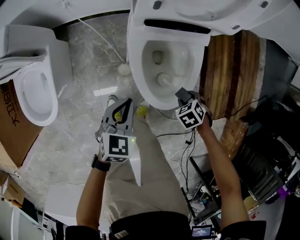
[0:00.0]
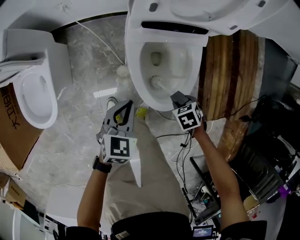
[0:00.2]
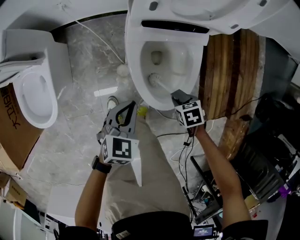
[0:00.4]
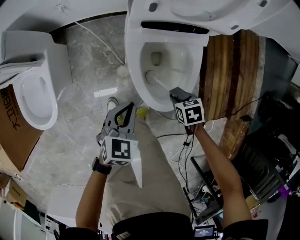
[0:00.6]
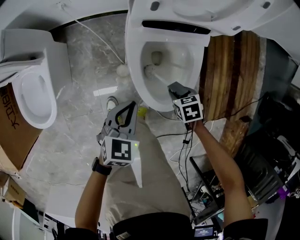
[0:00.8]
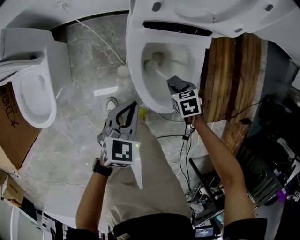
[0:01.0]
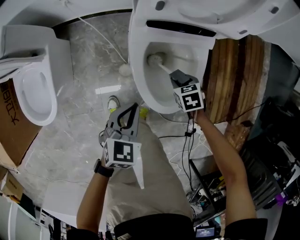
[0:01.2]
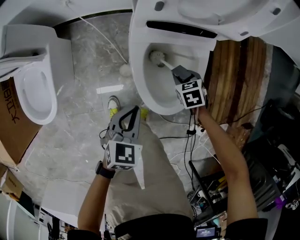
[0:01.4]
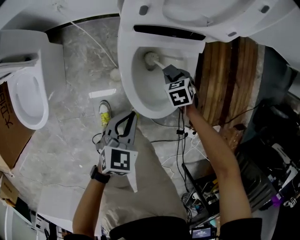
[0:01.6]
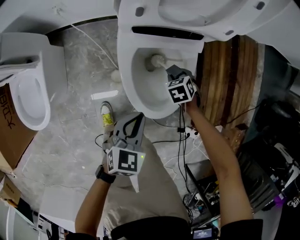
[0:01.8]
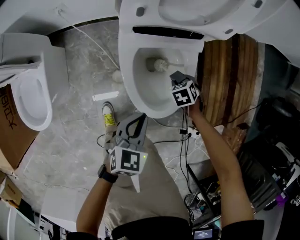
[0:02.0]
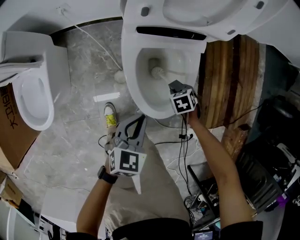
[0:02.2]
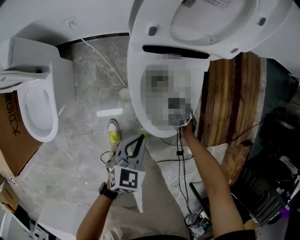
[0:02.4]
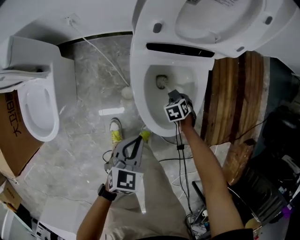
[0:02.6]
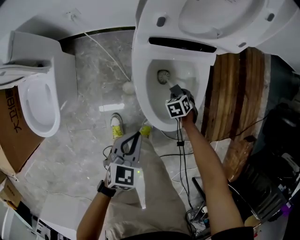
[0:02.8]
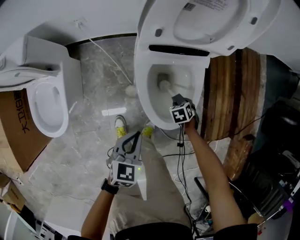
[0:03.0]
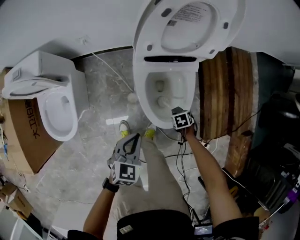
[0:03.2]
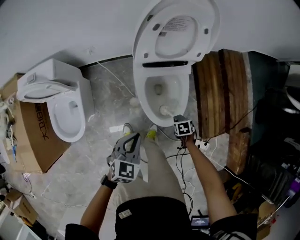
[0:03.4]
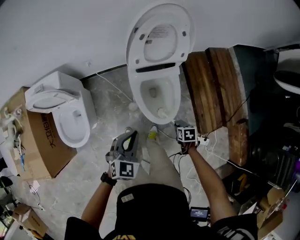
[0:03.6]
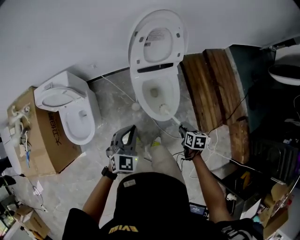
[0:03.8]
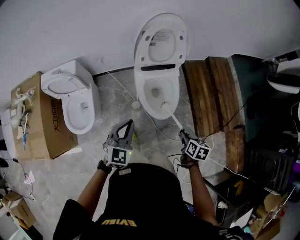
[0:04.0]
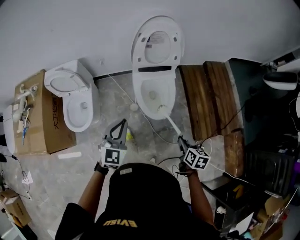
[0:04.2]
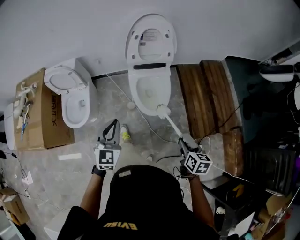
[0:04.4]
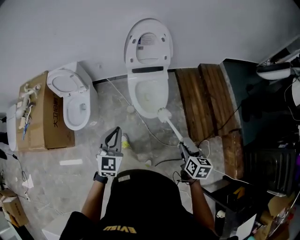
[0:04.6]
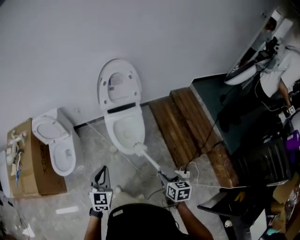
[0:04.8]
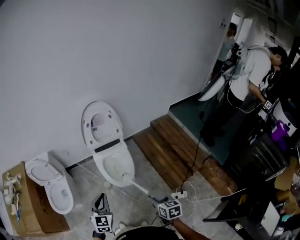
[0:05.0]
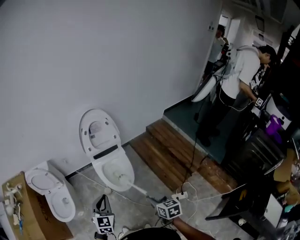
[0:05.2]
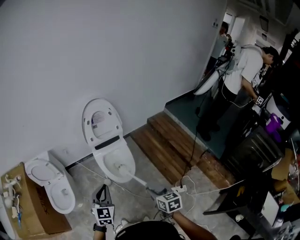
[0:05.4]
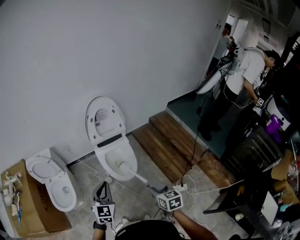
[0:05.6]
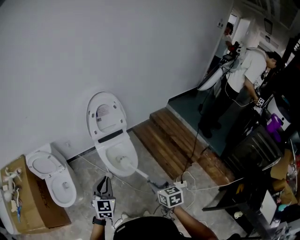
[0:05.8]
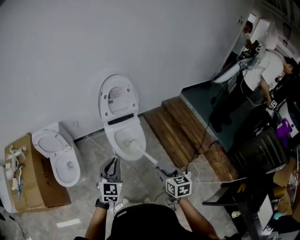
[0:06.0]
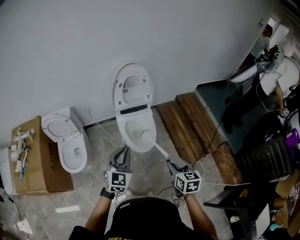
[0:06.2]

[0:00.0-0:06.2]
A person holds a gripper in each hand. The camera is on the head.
0.0 to 1.6 s: The right gripper changes place by some 15 cm, while the left gripper changes place by about 5 cm.
1.6 to 3.2 s: The left gripper travels upward by roughly 10 cm, while the right gripper reaches approximately 10 cm downward, then returns, and rotates approximately 20 degrees.
3.2 to 4.6 s: Both grippers move upward, roughly 40 cm. The right gripper points its fingers some 40 degrees further upward, while the left gripper rotates approximately 30 degrees.
4.6 to 6.2 s: The right gripper is displaced upward and to the left by roughly 15 cm; the left gripper moves upward, some 10 cm.

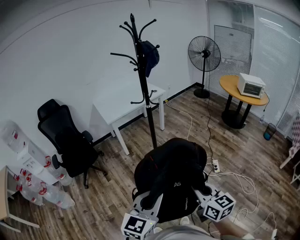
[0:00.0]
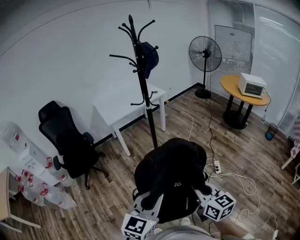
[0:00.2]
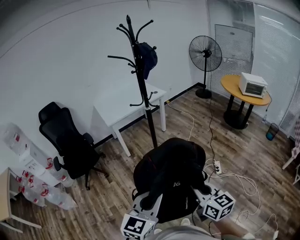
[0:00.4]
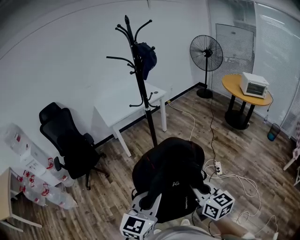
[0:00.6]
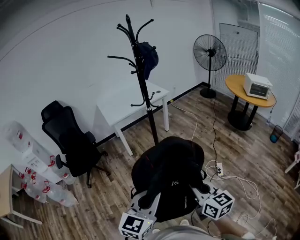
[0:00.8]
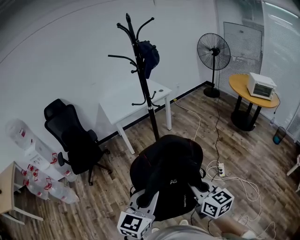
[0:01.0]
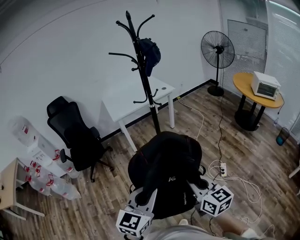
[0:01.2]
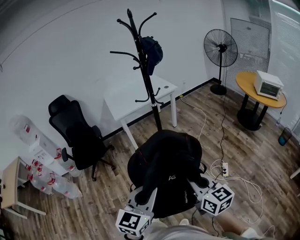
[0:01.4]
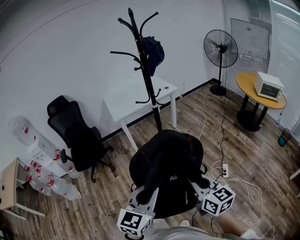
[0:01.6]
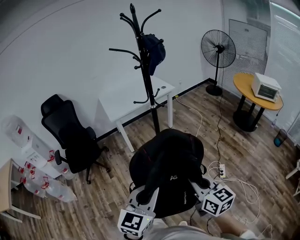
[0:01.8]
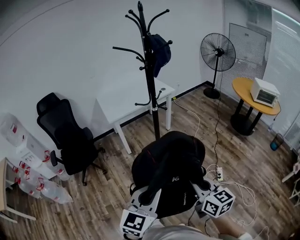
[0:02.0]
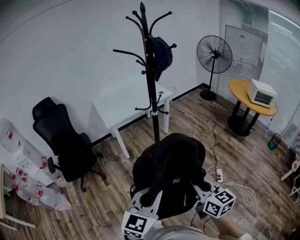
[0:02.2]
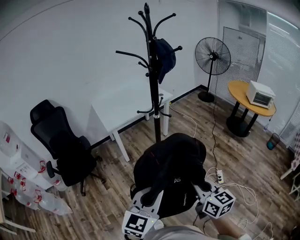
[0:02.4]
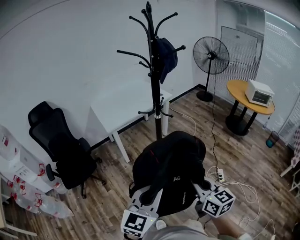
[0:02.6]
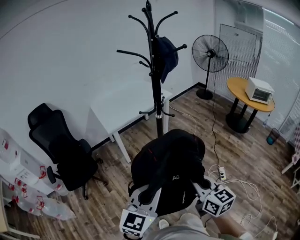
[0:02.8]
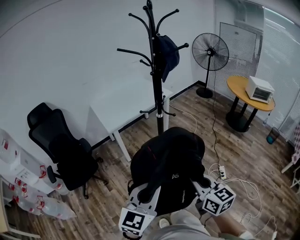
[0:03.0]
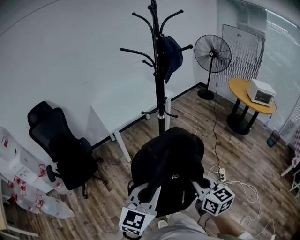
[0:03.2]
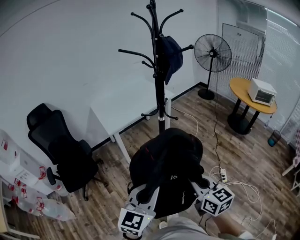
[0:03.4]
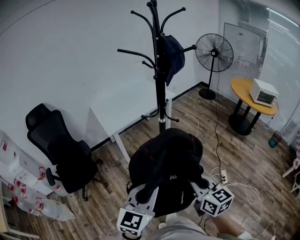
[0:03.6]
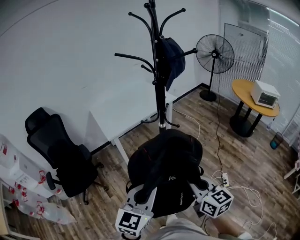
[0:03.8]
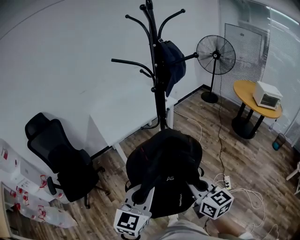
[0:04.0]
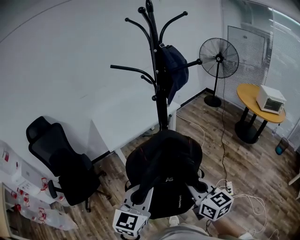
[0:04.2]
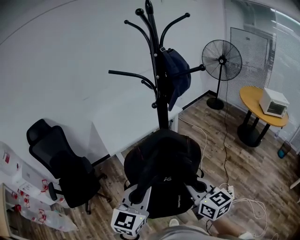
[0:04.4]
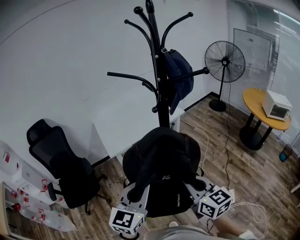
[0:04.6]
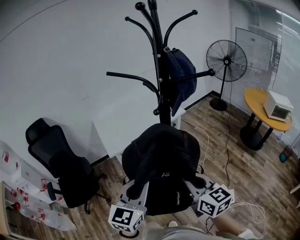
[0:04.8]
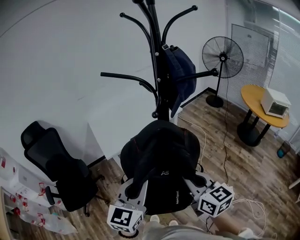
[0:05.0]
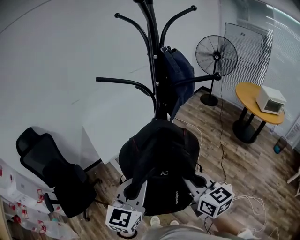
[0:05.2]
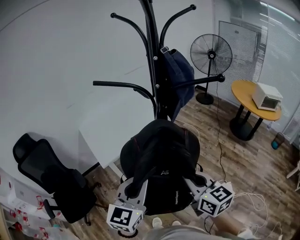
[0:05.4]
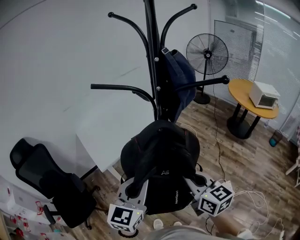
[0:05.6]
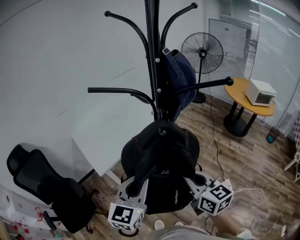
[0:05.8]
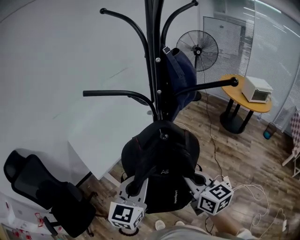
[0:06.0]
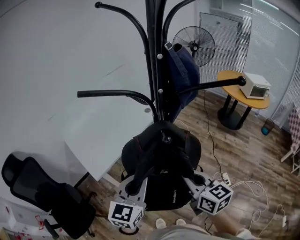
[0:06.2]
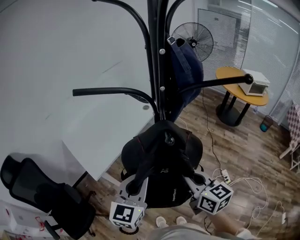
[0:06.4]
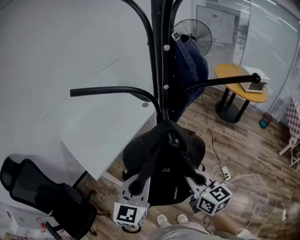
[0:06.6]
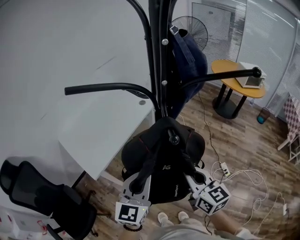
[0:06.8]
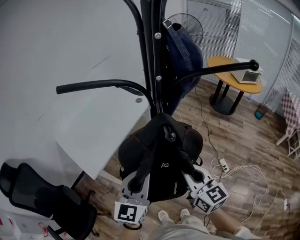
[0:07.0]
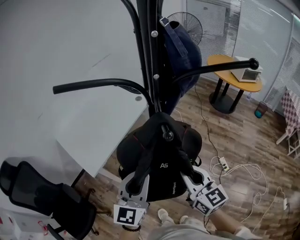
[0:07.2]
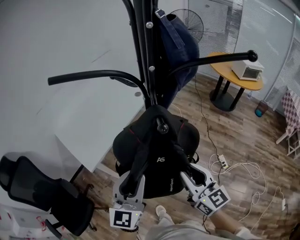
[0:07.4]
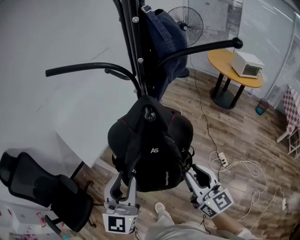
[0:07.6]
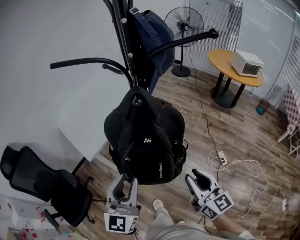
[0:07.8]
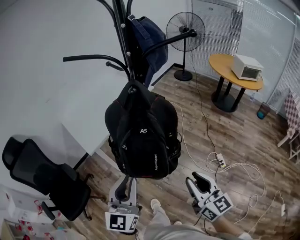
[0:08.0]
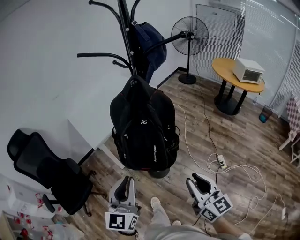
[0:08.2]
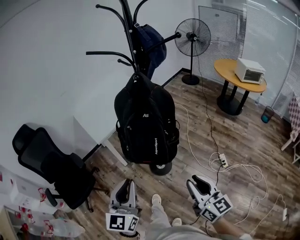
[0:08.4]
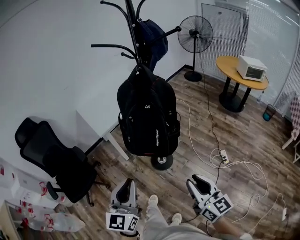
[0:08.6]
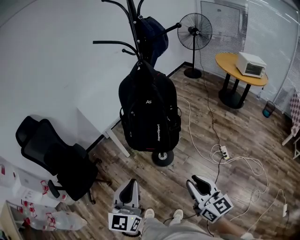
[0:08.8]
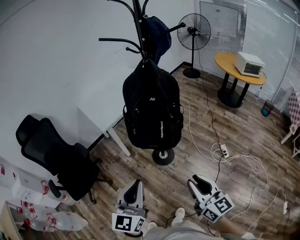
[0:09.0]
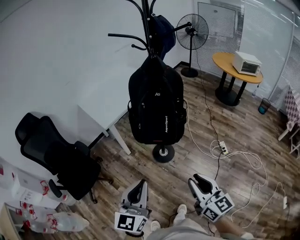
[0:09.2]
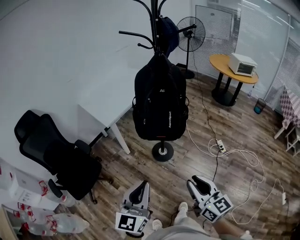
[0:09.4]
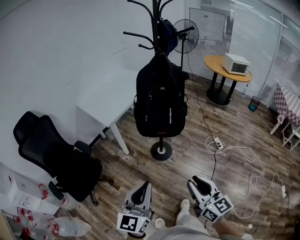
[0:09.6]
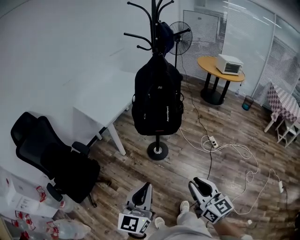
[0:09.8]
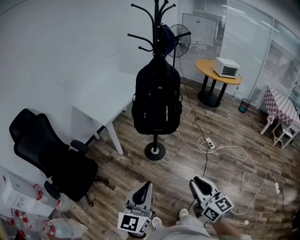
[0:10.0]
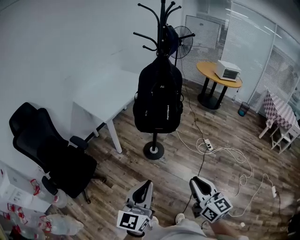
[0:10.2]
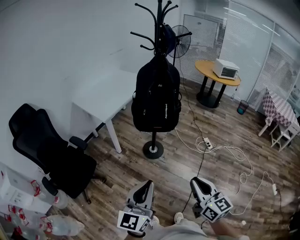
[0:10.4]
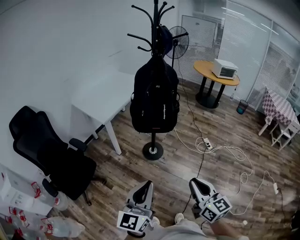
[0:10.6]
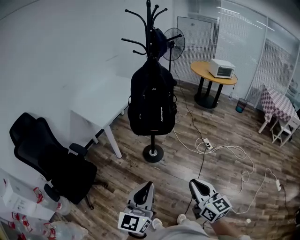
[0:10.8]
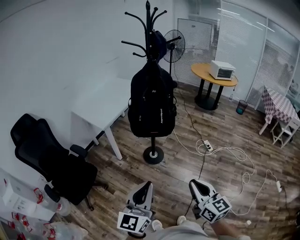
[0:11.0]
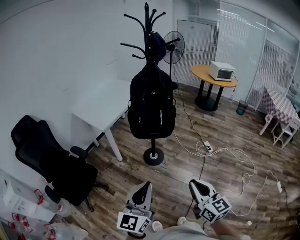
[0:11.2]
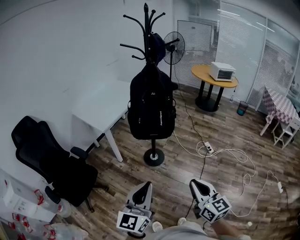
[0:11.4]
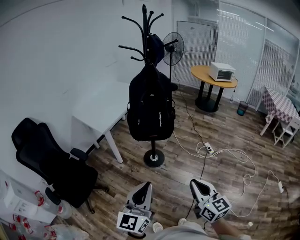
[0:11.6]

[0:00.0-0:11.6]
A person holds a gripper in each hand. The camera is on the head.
0.0 to 1.4 s: The two grippers go approximately 10 cm forward and to the right.
1.4 to 2.8 s: The right gripper heads to the left and forward, covering roughly 20 cm, while the left gripper is displaced forward and to the left by about 20 cm.
2.8 to 4.4 s: The grippers both shift forward by approximately 25 cm.
4.4 to 5.8 s: The grippers both shift forward by some 15 cm.
5.8 to 7.2 s: The left gripper moves downward, some 5 cm, while the right gripper moves about 5 cm.
7.2 to 8.8 s: Both grippers move backward, approximately 35 cm.
8.8 to 10.2 s: Both grippers travel together backward and to the left, some 25 cm. The left gripper rotates approximately 20 degrees.
10.2 to 11.6 s: The grippers move only a little.

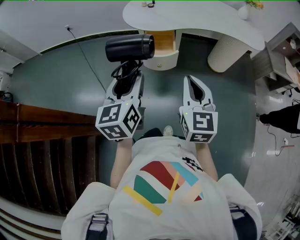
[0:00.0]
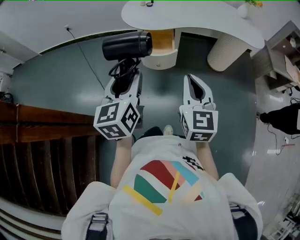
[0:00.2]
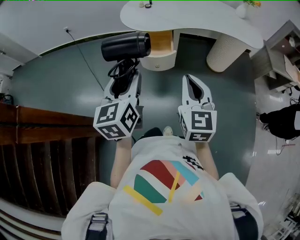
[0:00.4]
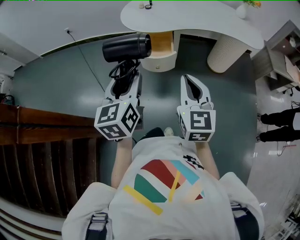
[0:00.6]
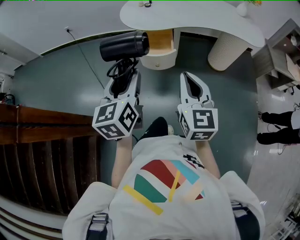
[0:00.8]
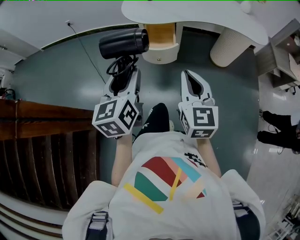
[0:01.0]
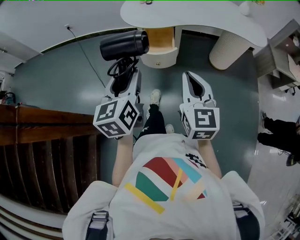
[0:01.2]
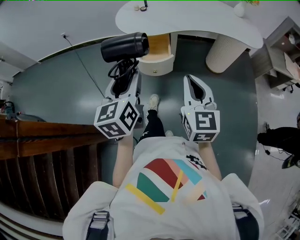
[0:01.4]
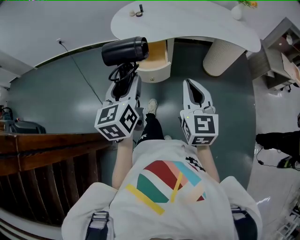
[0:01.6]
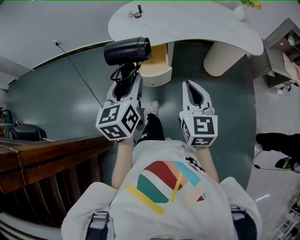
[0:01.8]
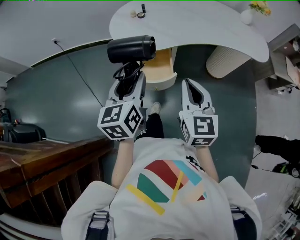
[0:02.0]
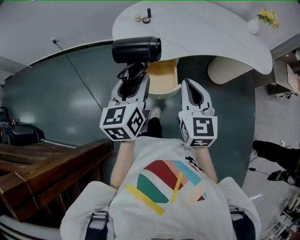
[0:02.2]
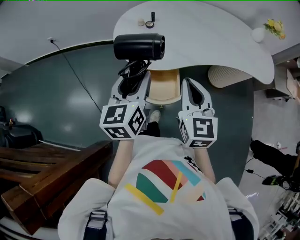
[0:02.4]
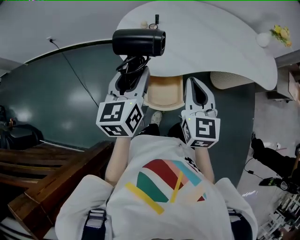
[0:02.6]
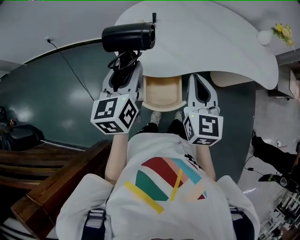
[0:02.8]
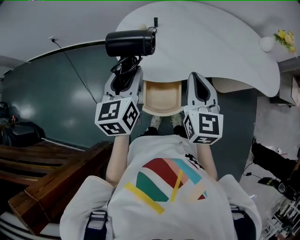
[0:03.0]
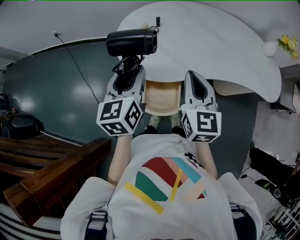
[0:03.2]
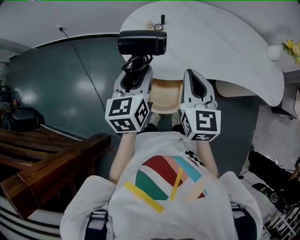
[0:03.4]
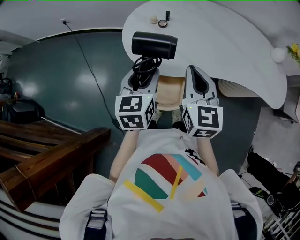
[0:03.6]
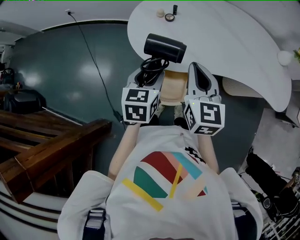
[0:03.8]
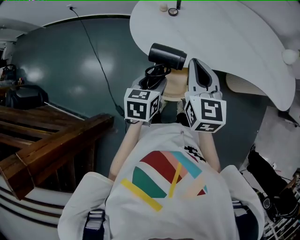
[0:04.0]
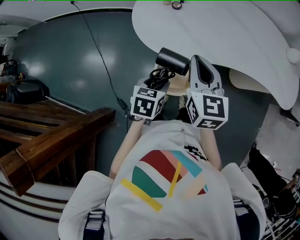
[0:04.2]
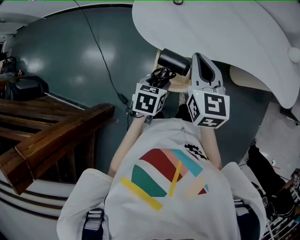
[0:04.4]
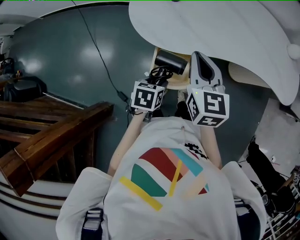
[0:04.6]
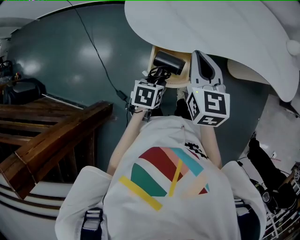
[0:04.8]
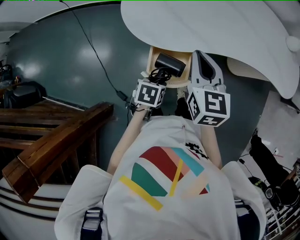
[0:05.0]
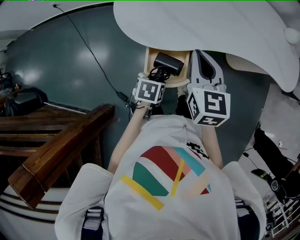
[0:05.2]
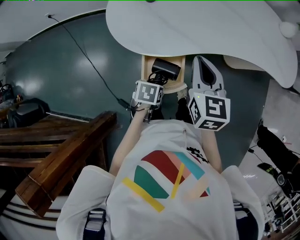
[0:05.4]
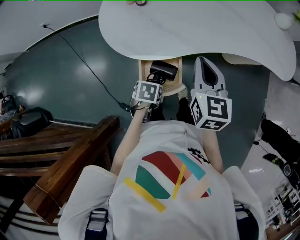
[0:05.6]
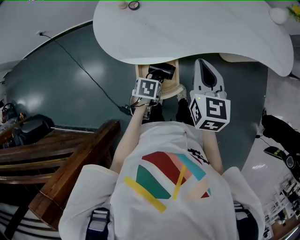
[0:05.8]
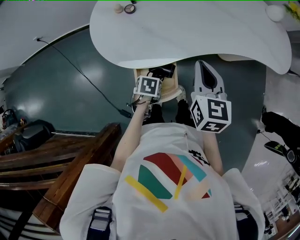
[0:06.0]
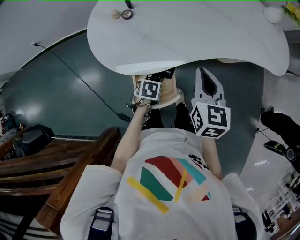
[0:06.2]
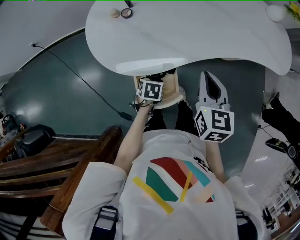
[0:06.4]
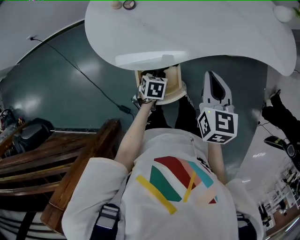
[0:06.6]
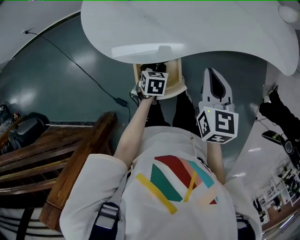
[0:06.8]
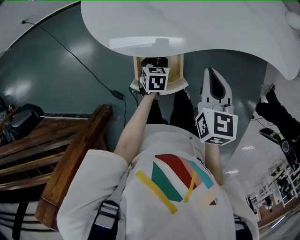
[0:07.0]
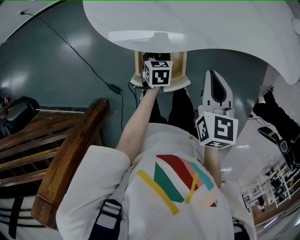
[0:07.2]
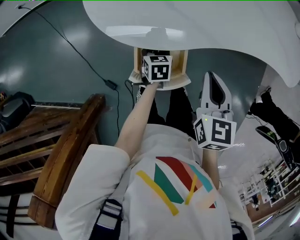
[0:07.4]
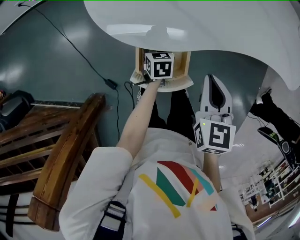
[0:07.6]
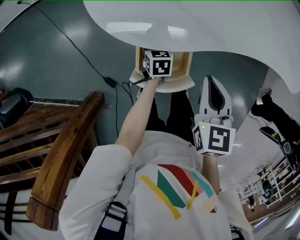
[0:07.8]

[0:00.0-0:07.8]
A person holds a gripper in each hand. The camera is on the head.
0.0 to 1.6 s: The grippers both shift forward by roughly 10 cm.
1.6 to 3.2 s: The grippers both shift forward by some 35 cm.
3.2 to 4.6 s: The left gripper is displaced downward and backward by some 25 cm, and tilts its fingers roughly 40 degrees downward. Meanwhile the right gripper is displaced downward by some 5 cm.
4.6 to 6.2 s: The left gripper shifts some 10 cm downward, and turns by approximately 30 degrees, while the right gripper changes place by some 10 cm, and swivels about 20 degrees.
6.2 to 7.8 s: The right gripper shifts by approximately 10 cm; the left gripper moves about 10 cm, and turns by about 30 degrees.
